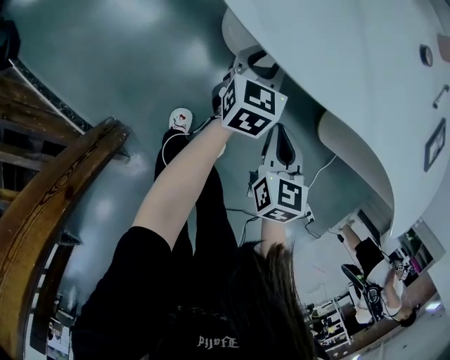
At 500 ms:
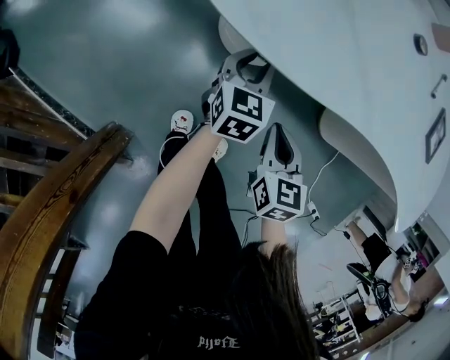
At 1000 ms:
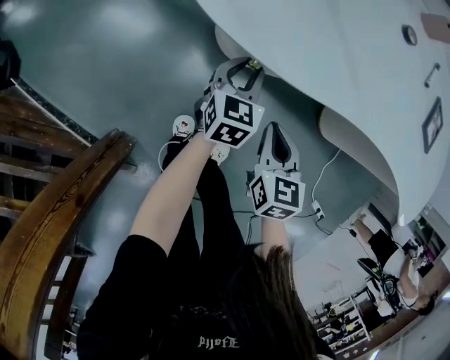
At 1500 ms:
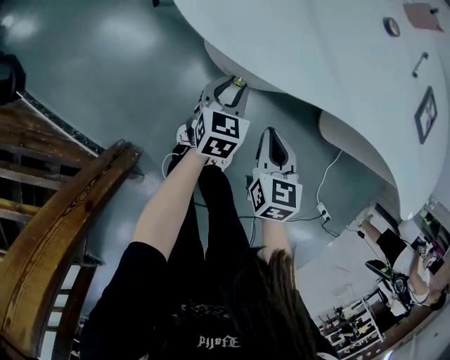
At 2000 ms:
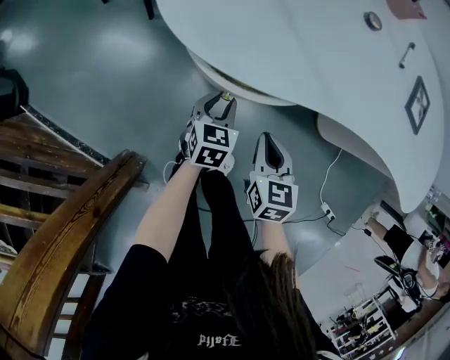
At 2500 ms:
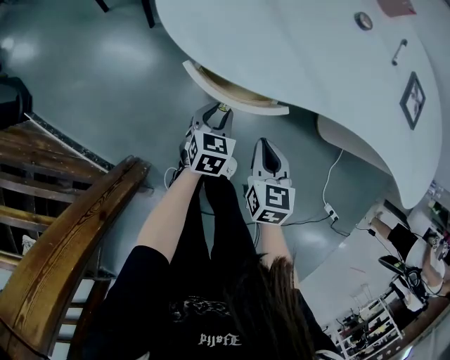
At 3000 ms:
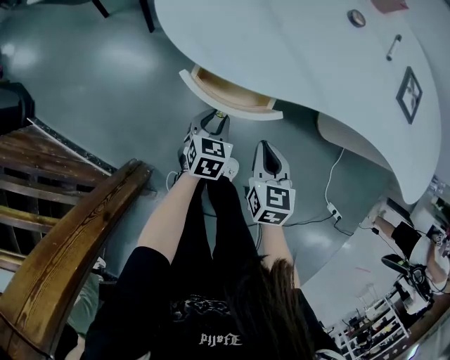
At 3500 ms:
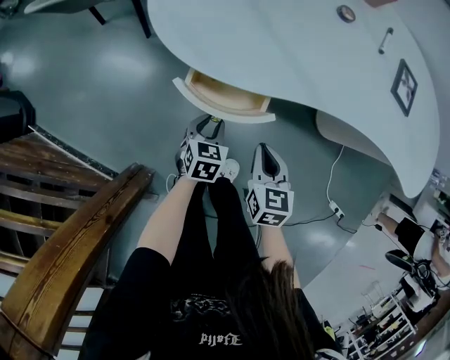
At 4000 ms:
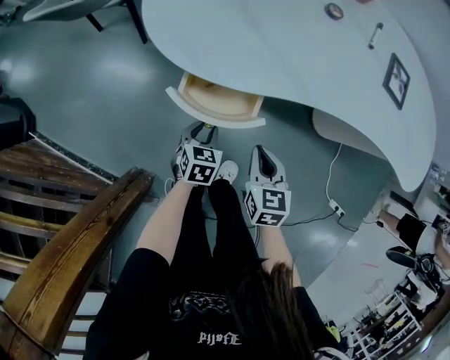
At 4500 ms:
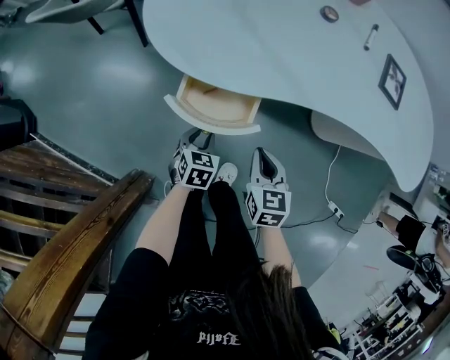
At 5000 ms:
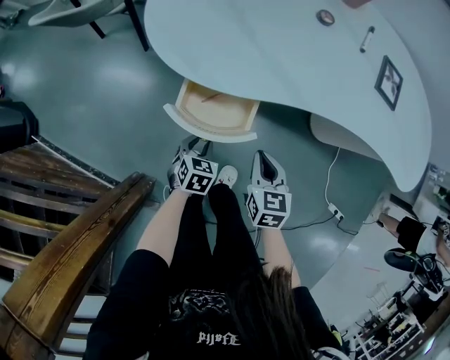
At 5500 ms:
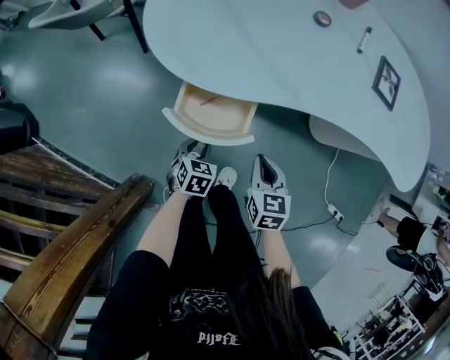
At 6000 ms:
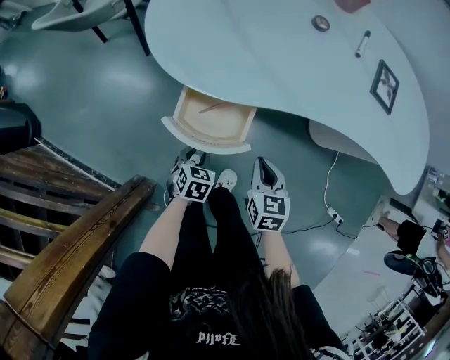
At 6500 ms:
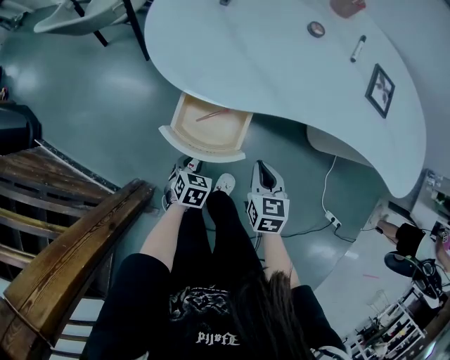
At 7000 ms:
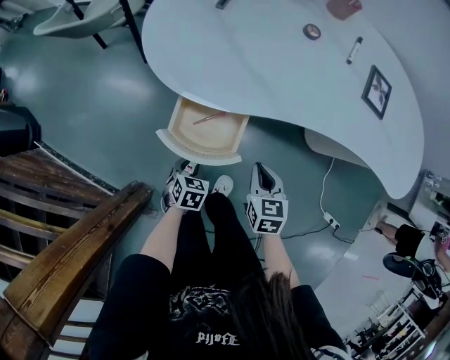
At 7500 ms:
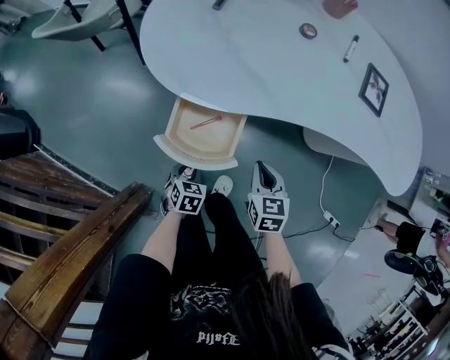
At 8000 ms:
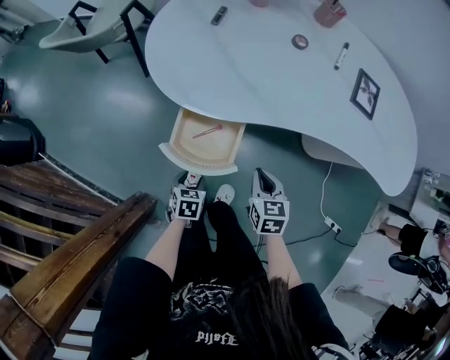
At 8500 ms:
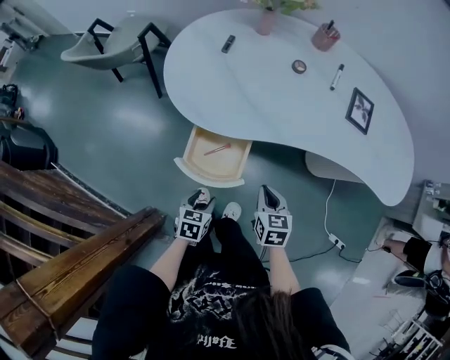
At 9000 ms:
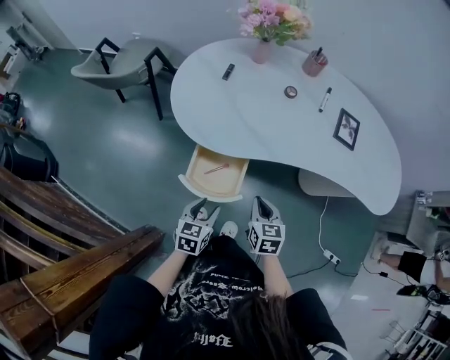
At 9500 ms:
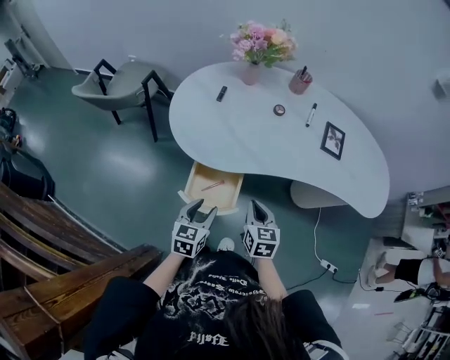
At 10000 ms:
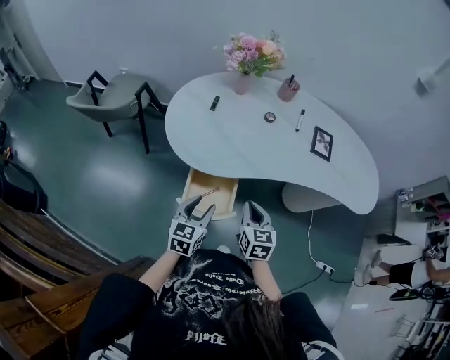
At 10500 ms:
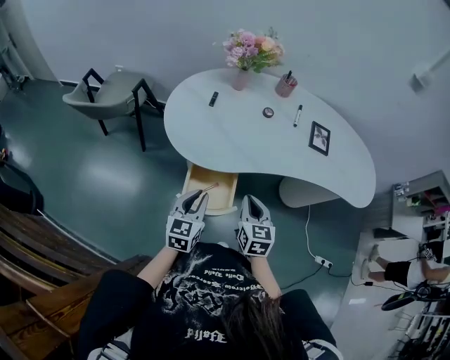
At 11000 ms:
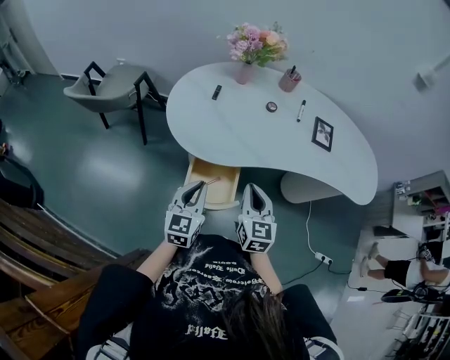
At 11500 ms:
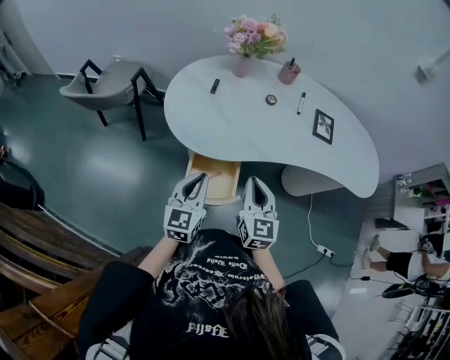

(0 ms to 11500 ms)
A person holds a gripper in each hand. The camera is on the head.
0 ms - 2000 ms: The left gripper heads backward, covering about 10 cm; the right gripper travels upward by roughly 5 cm.
2000 ms - 4000 ms: The left gripper travels backward by roughly 5 cm; the right gripper moves approximately 5 cm.
4000 ms - 6000 ms: The left gripper shifts about 5 cm backward.
6000 ms - 7500 ms: The grippers stay close to where they were, moving slightly.
7500 ms - 9500 ms: The left gripper is displaced upward by about 25 cm, angles its fingers upward, by roughly 30 degrees, and opens up. The right gripper moves upward, approximately 15 cm.
9500 ms - 11500 ms: Both grippers travel together upward, some 10 cm. The right gripper turns by approximately 20 degrees. The left gripper turns by roughly 20 degrees, and closes up.

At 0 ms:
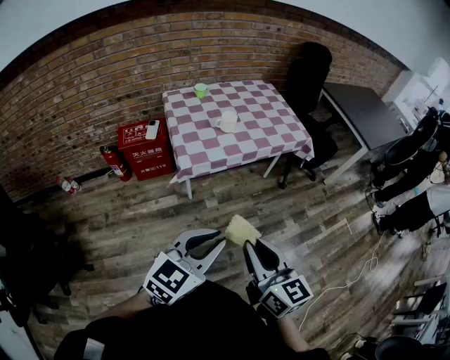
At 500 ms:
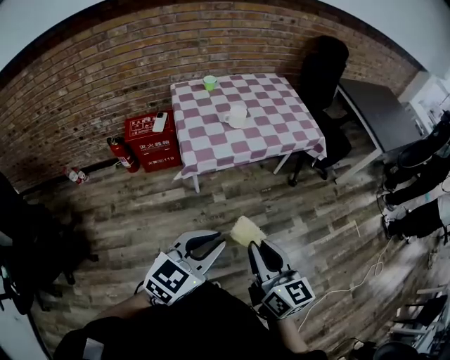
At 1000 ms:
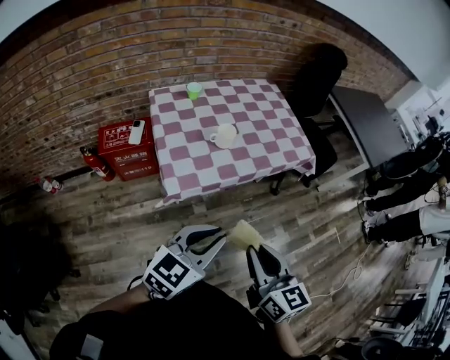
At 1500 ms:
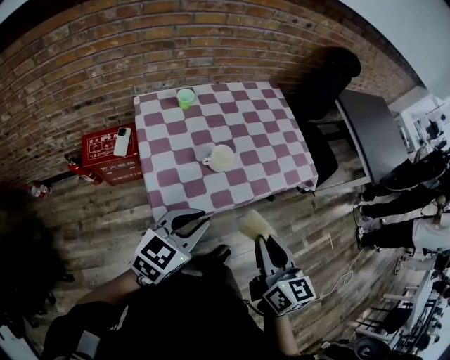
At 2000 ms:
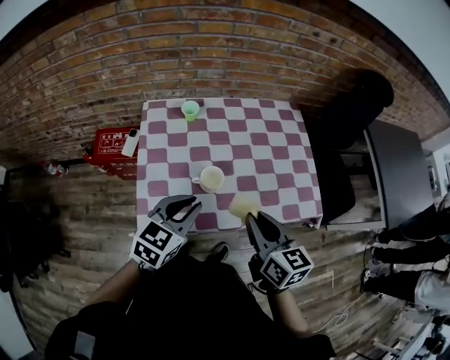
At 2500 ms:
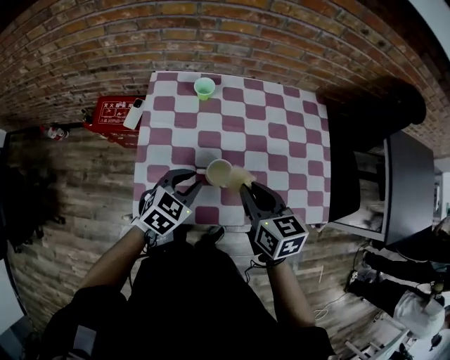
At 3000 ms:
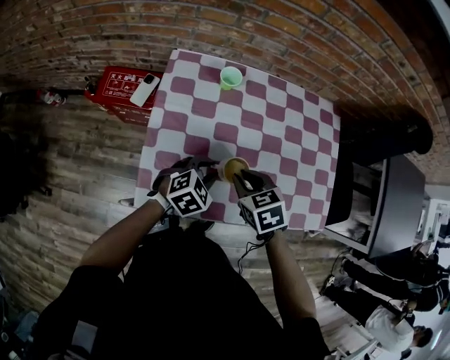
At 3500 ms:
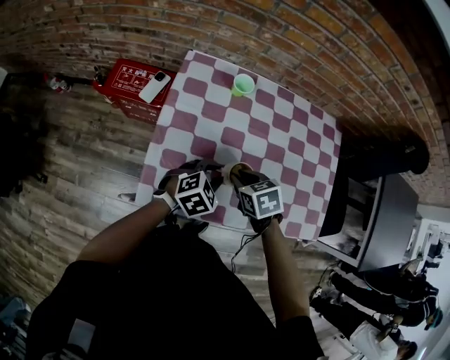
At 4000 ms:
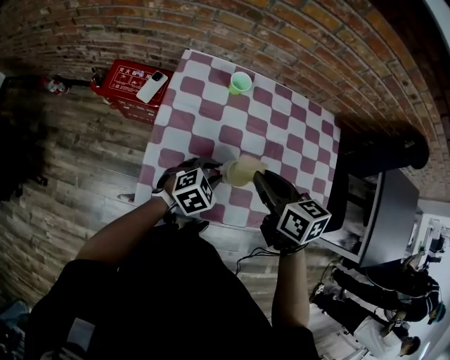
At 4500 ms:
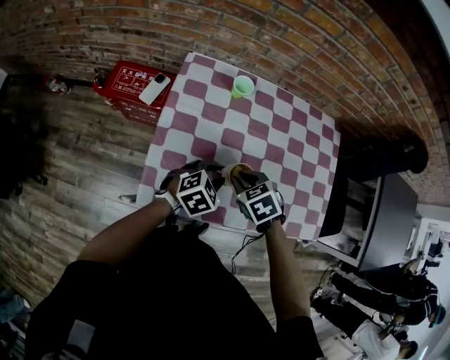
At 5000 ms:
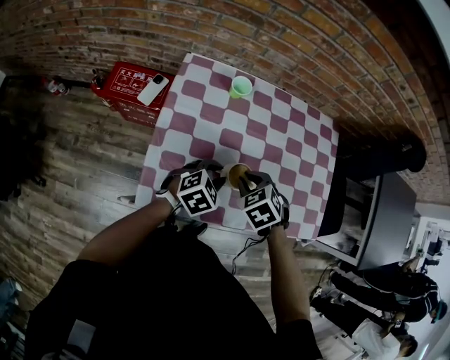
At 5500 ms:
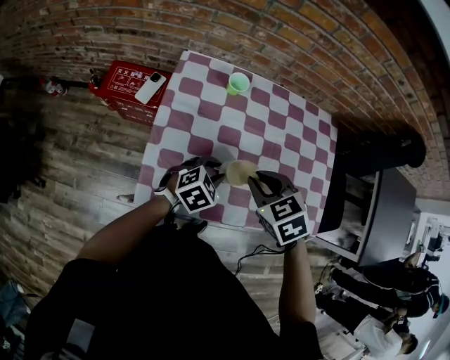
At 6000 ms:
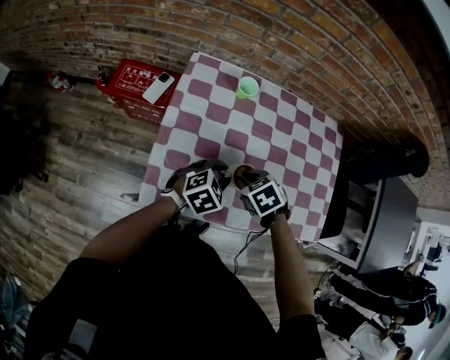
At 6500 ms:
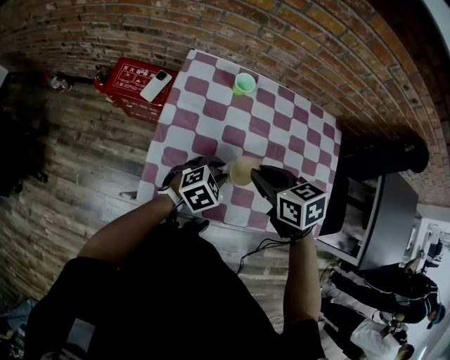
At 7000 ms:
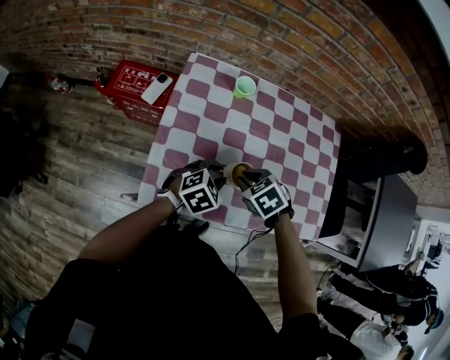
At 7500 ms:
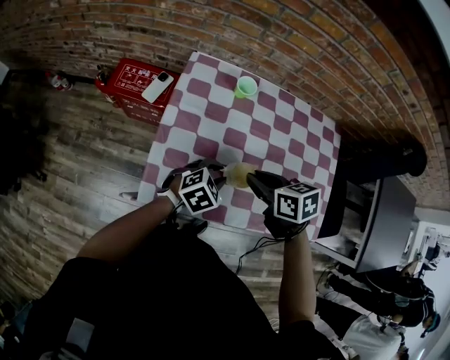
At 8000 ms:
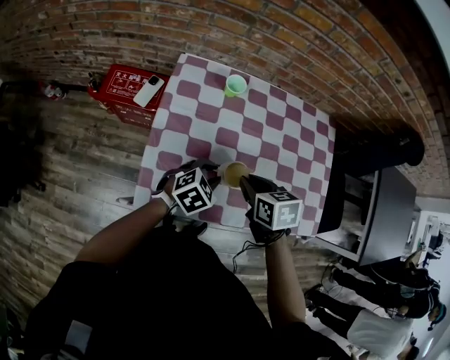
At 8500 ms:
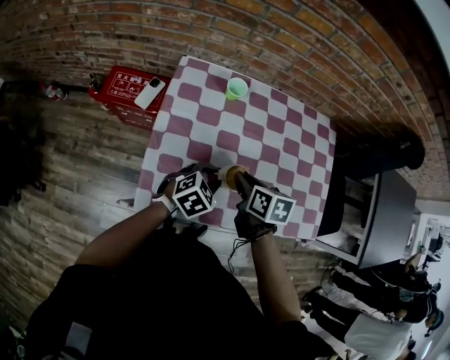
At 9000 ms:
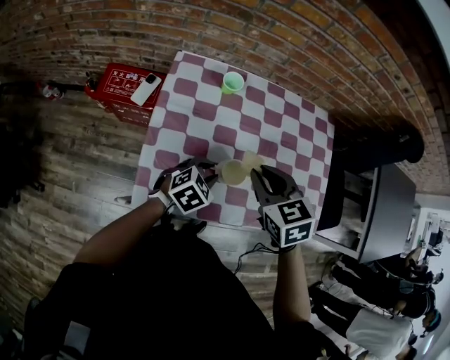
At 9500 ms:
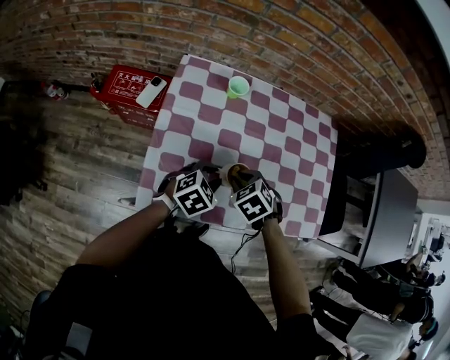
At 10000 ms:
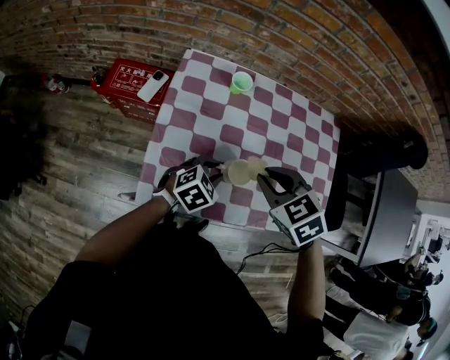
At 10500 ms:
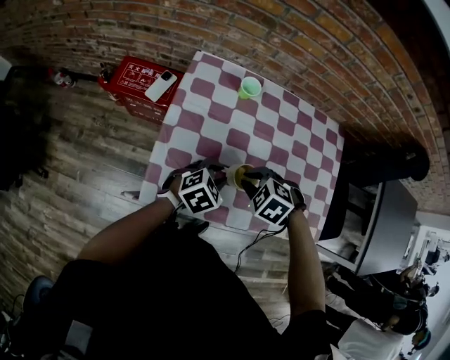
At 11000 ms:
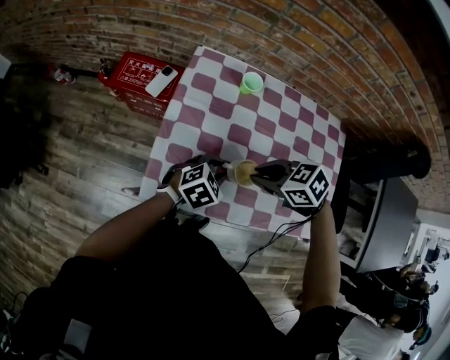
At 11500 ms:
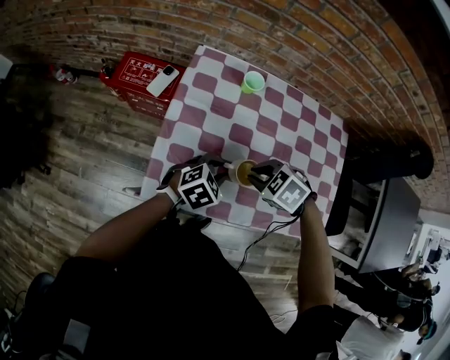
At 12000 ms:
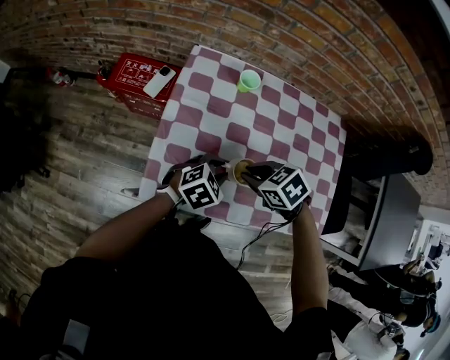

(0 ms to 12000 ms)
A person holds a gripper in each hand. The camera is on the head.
0 ms - 2000 ms: The two grippers travel together, forward, approximately 60 cm. The left gripper swivels approximately 20 degrees.
2000 ms - 4000 ms: The right gripper heads forward and to the left, covering about 20 cm, moves some 20 cm downward and comes back, and turns by about 30 degrees; the left gripper moves downward and forward, about 20 cm, and turns by about 20 degrees.
4000 ms - 6000 ms: The right gripper goes up and down, about 15 cm each way, reversing 2 times, and points its fingers some 40 degrees further downward.
6000 ms - 8000 ms: The right gripper swings up and down, roughly 10 cm each way, with 2 reversals, and swivels about 30 degrees.
8000 ms - 10000 ms: The right gripper swings up and down, about 15 cm each way, with 2 reversals, and swivels some 40 degrees.
10000 ms - 12000 ms: The right gripper goes up and down, approximately 10 cm each way, reversing 2 times, and changes its angle by about 20 degrees.

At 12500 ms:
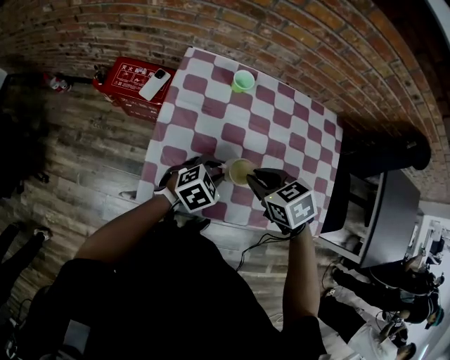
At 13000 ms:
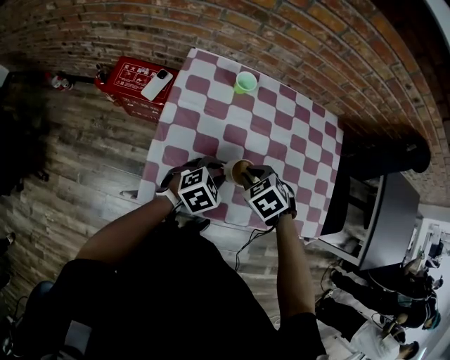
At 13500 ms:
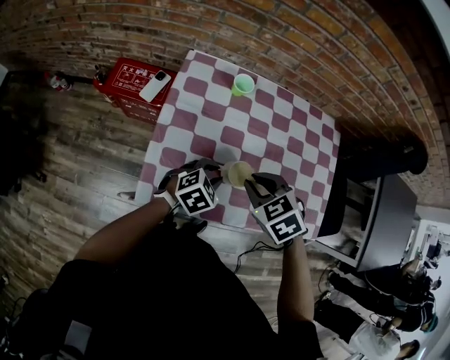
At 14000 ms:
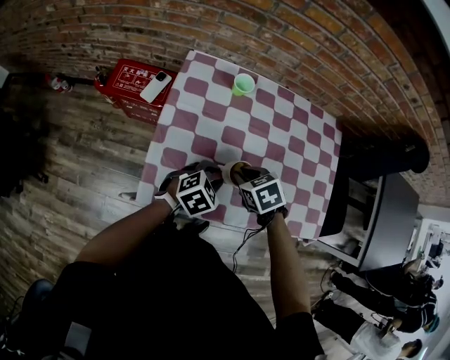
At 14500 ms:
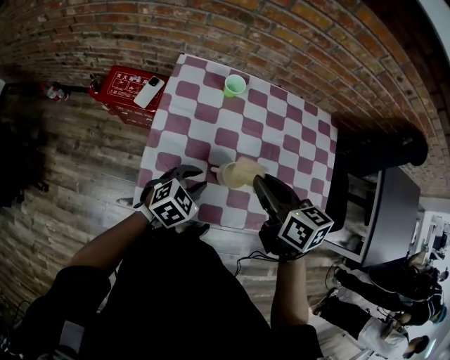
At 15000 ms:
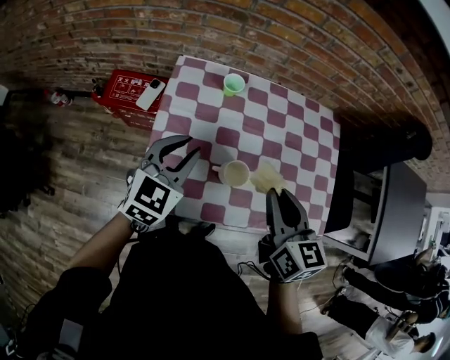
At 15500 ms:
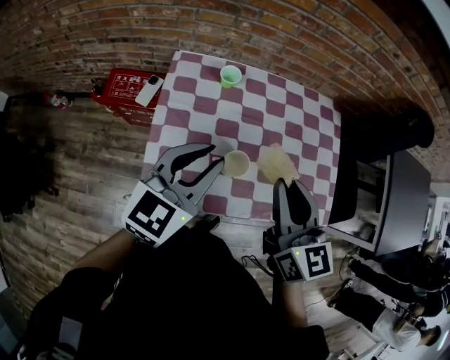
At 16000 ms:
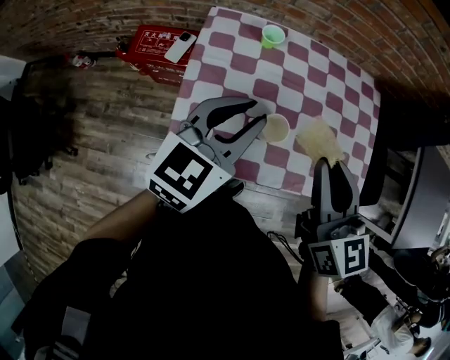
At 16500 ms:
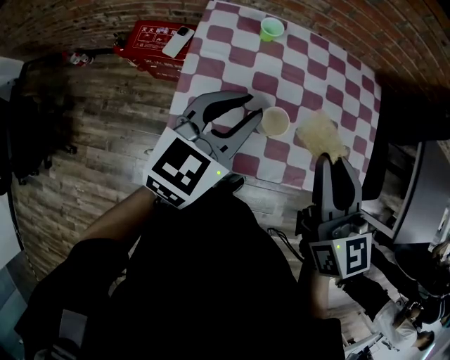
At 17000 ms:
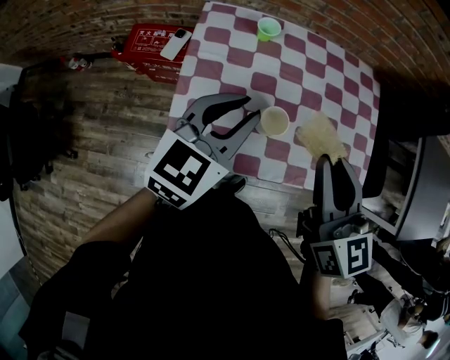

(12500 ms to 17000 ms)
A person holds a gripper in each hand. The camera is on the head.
12500 ms - 14500 ms: The right gripper goes up and down, approximately 15 cm each way, reversing 3 times, and changes its angle by some 40 degrees.
14500 ms - 17000 ms: The right gripper shifts about 10 cm upward and backward, and changes its angle by approximately 30 degrees. Meanwhile the left gripper moves upward, some 20 cm, and turns by approximately 30 degrees.
